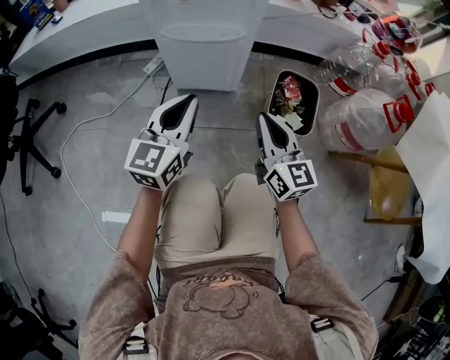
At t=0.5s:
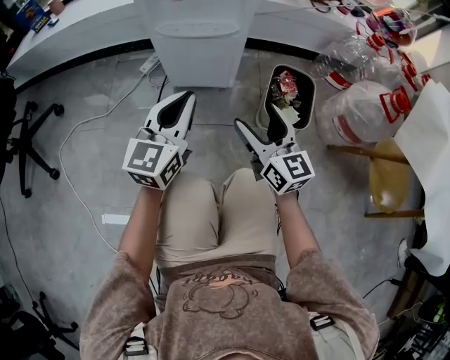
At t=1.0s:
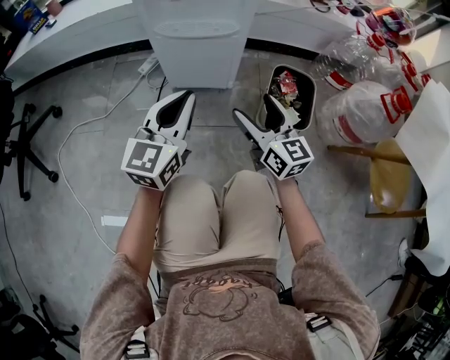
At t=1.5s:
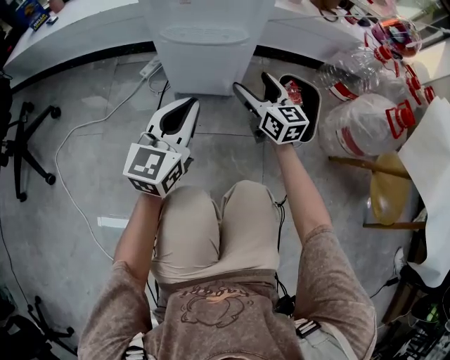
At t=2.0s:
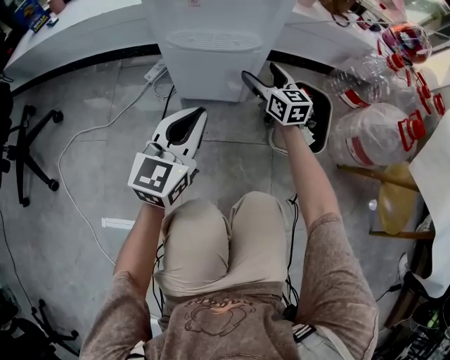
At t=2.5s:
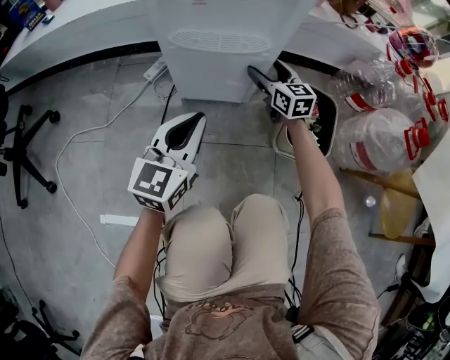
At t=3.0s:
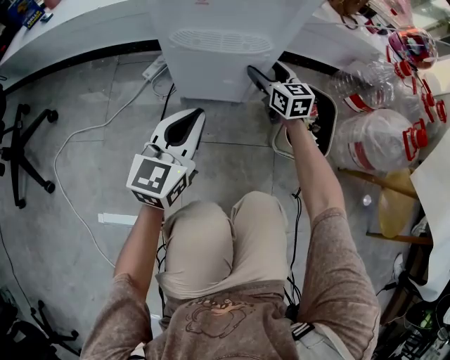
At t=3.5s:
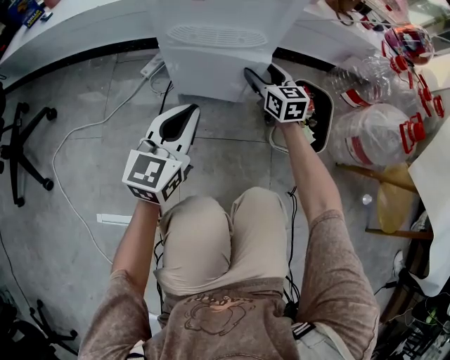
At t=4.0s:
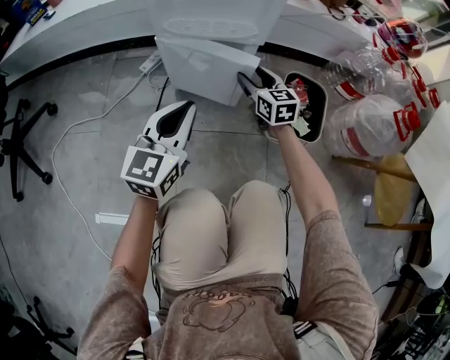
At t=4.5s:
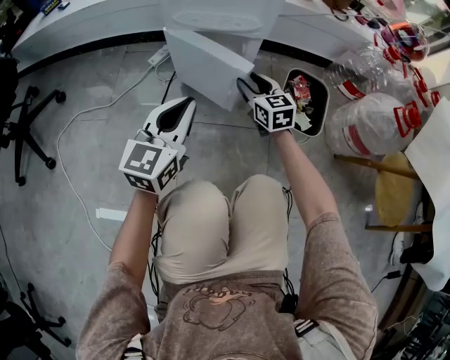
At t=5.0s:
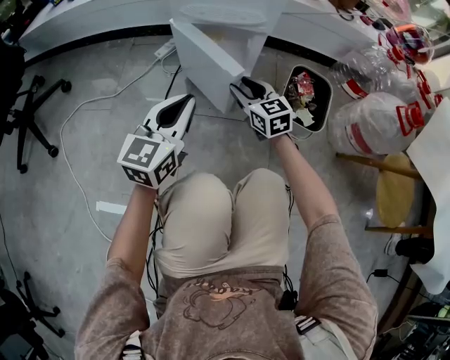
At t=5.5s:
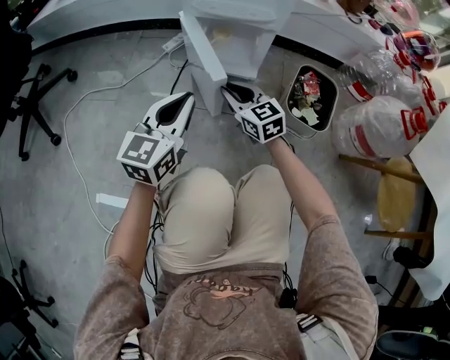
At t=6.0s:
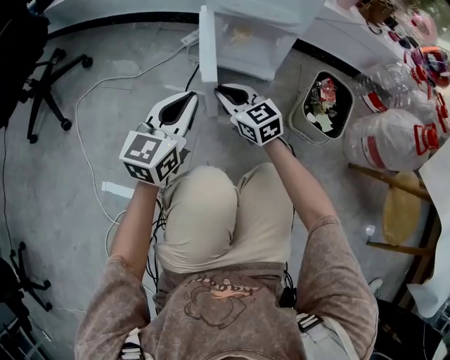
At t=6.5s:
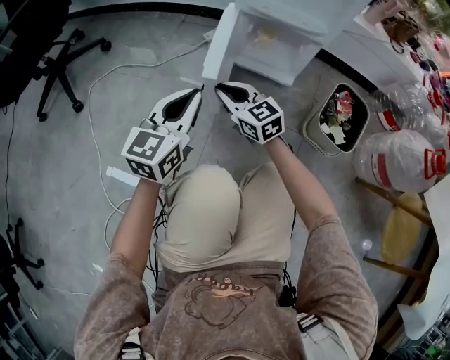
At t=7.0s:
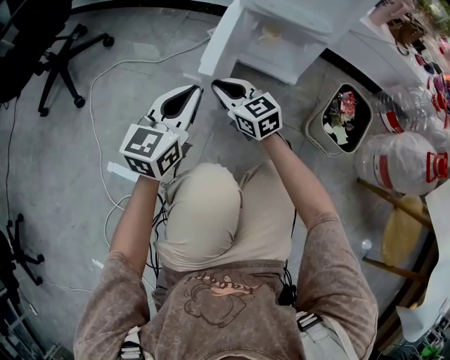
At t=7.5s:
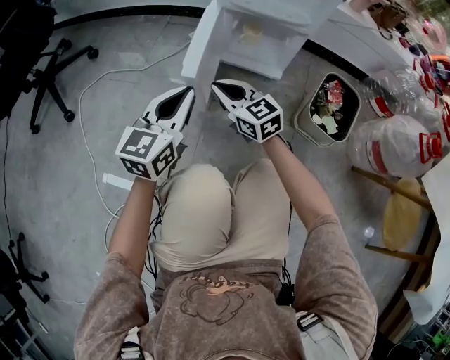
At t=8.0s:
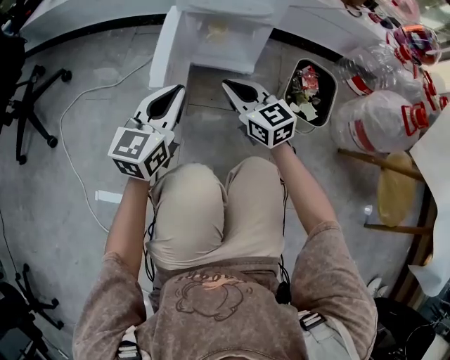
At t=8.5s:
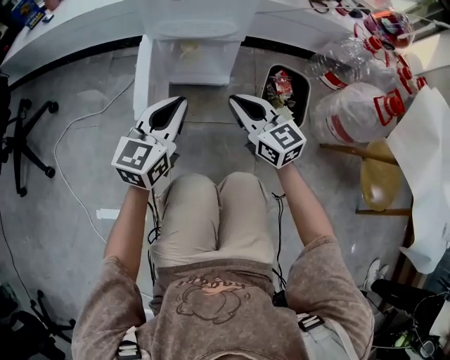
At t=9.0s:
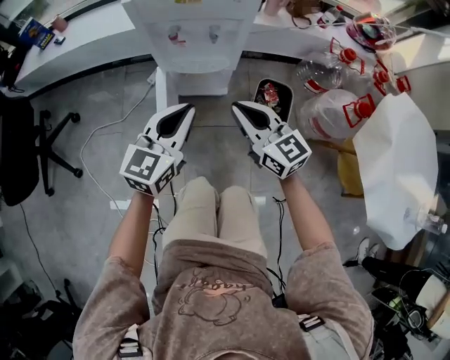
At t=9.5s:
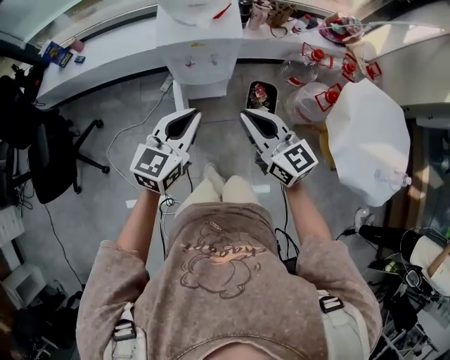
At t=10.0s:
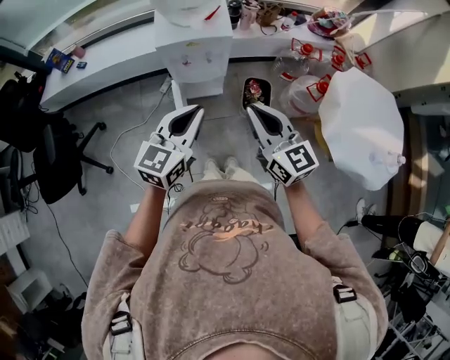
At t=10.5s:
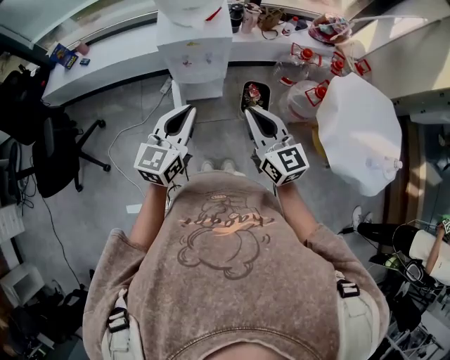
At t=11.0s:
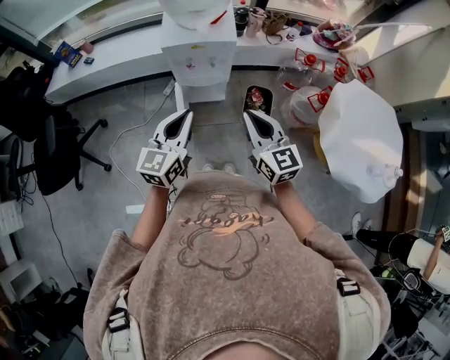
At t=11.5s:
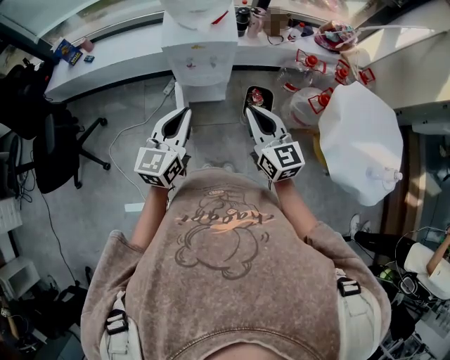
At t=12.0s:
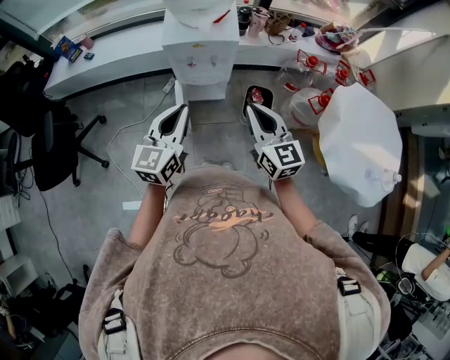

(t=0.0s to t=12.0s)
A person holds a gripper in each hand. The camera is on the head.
t=0.0s - t=2.0s: The right gripper is displaced forward and downward by approximately 25 cm, and opens.
t=2.0s - t=4.0s: The right gripper closes its fingers.
t=4.0s - t=6.0s: The right gripper goes about 25 cm to the left and backward, changes its angle by about 30 degrees, and closes, while the left gripper is displaced backward and to the left by some 10 cm.
t=6.0s - t=8.0s: The right gripper shifts roughly 5 cm to the right.
t=8.0s - t=10.0s: Both grippers travel together upward, about 60 cm. The right gripper swivels about 30 degrees. The left gripper swivels about 20 degrees.
t=10.0s - t=12.0s: The left gripper changes place by approximately 5 cm, while the right gripper shifts by roughly 5 cm.

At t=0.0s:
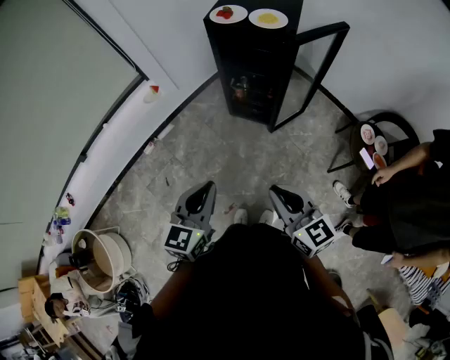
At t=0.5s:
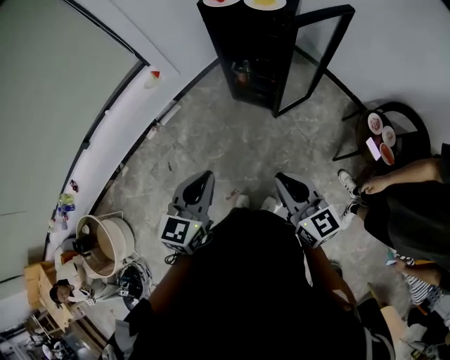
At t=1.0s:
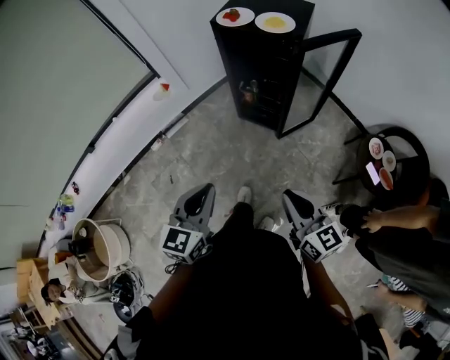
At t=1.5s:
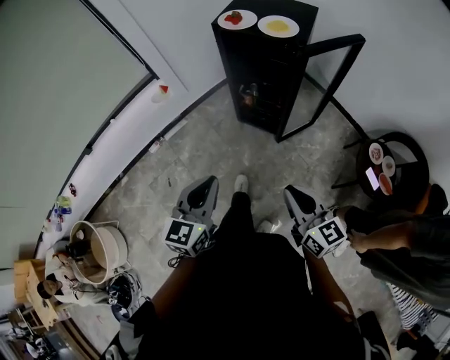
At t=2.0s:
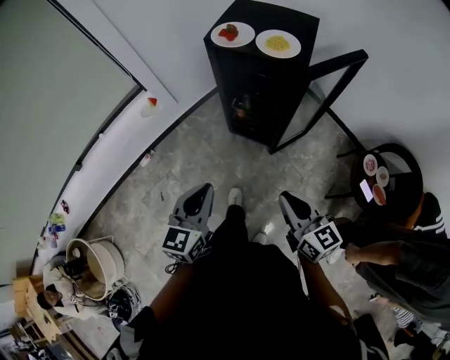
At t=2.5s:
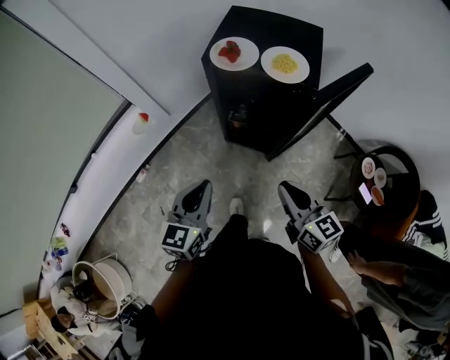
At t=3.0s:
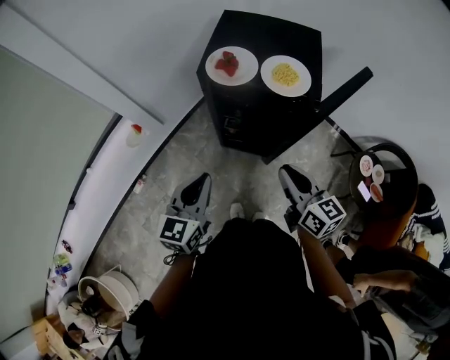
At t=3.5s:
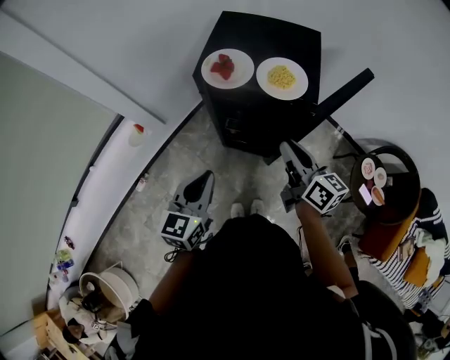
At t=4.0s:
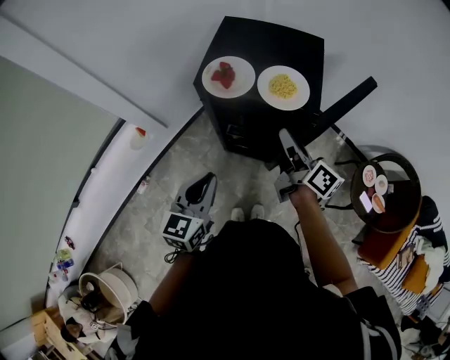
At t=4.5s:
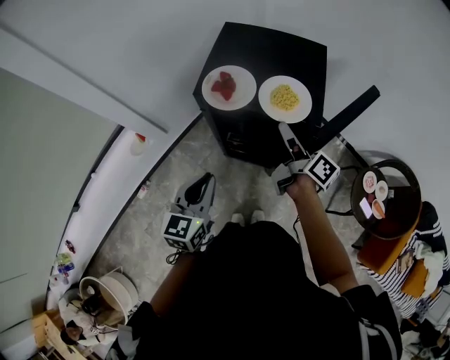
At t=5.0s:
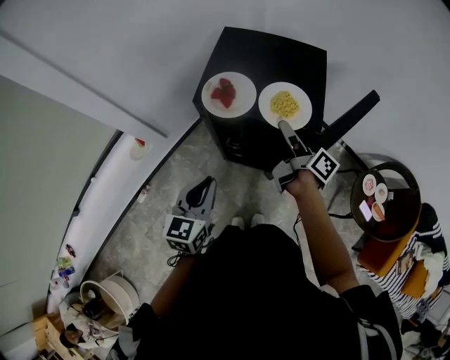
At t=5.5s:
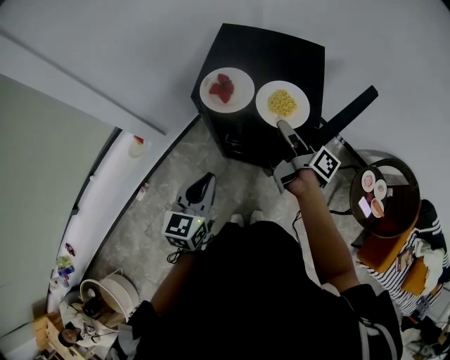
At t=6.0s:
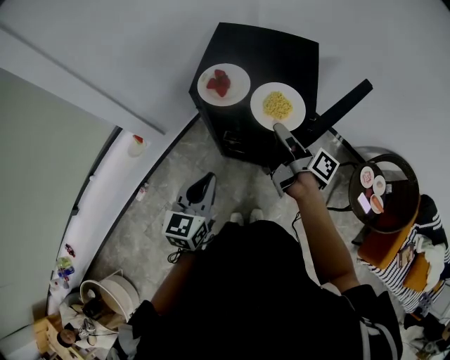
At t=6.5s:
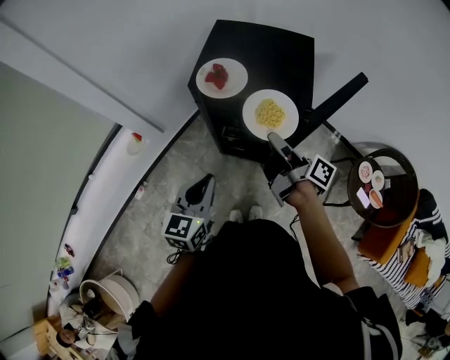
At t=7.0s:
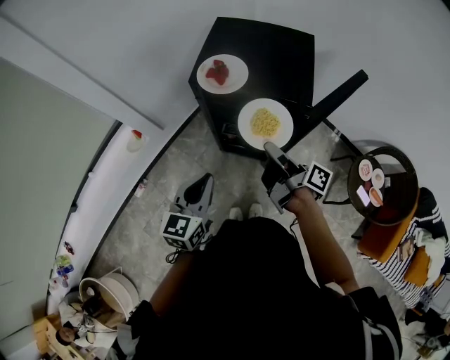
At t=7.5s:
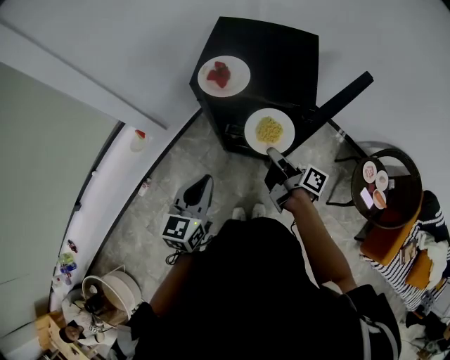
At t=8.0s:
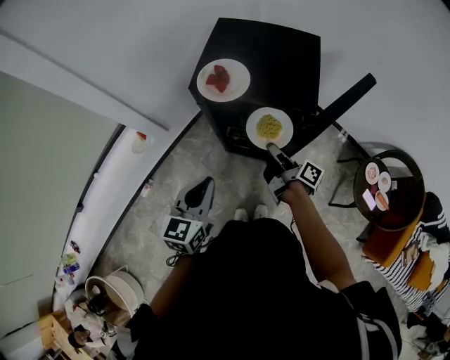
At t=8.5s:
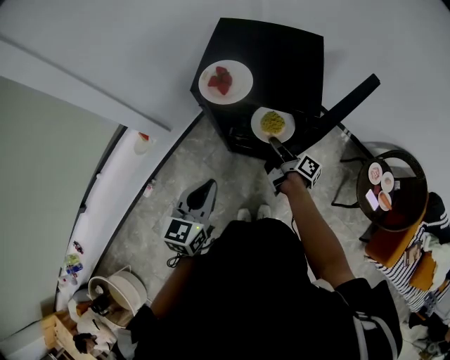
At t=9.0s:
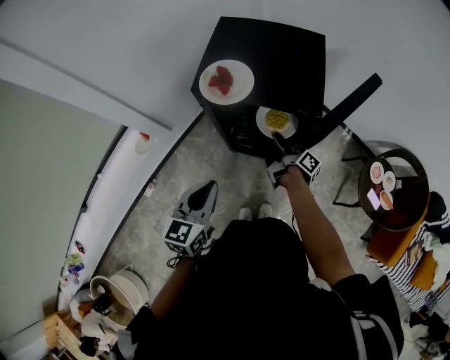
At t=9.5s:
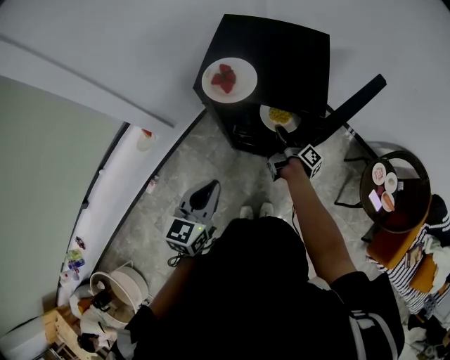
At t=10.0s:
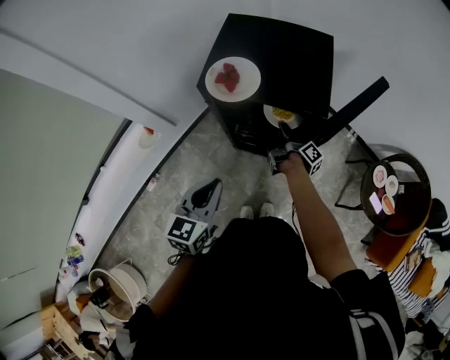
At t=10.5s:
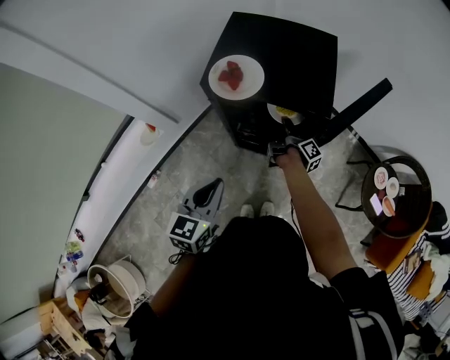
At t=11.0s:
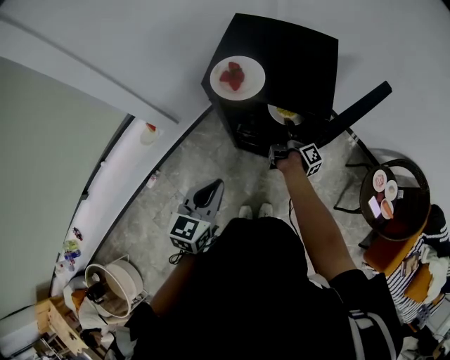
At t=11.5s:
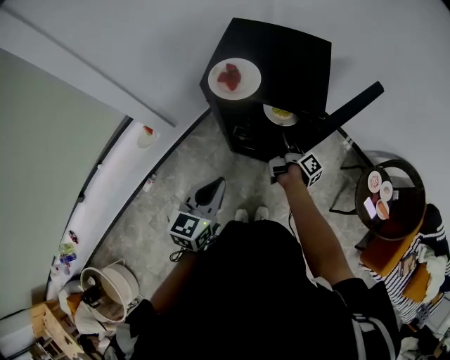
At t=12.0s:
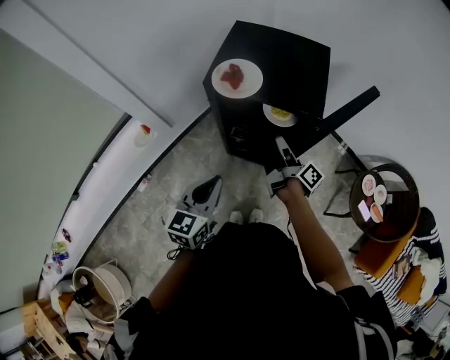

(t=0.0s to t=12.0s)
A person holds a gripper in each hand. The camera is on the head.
t=0.0s - t=2.0s: The left gripper changes place by some 15 cm.
t=2.0s - t=4.0s: The left gripper ends up some 25 cm from where it was.

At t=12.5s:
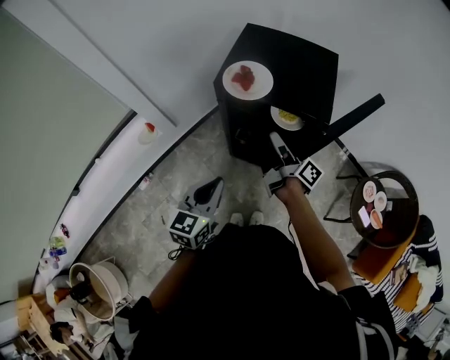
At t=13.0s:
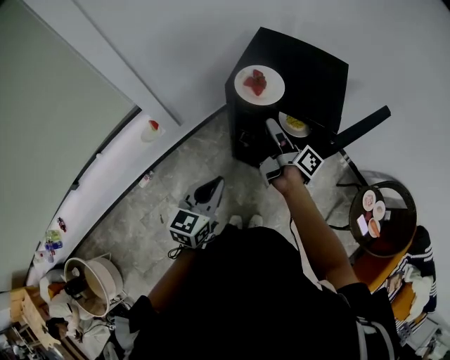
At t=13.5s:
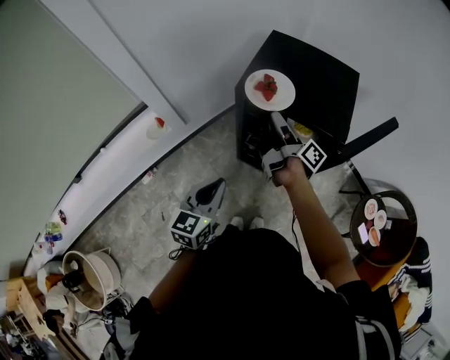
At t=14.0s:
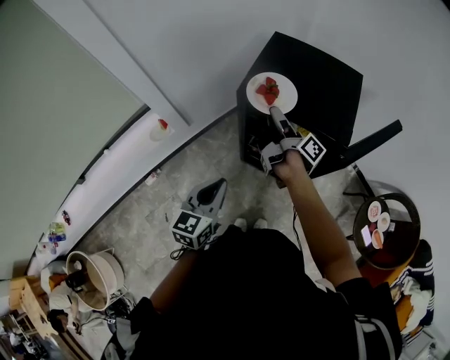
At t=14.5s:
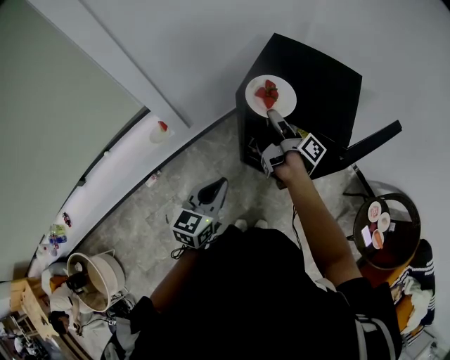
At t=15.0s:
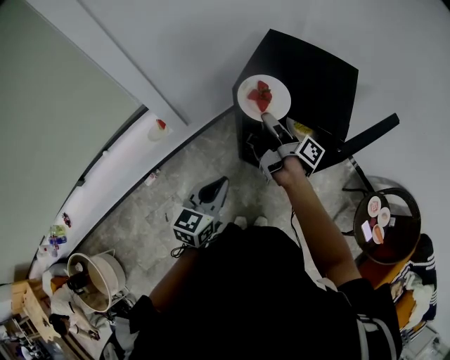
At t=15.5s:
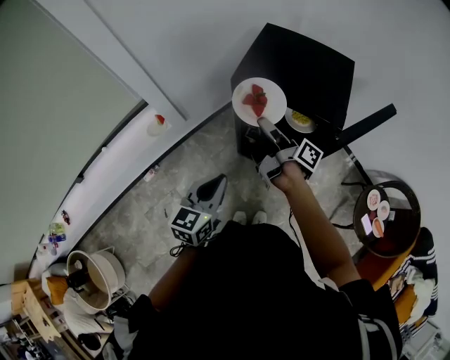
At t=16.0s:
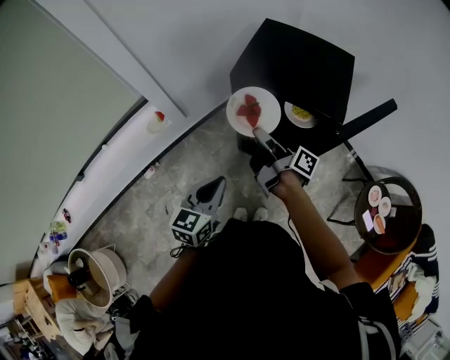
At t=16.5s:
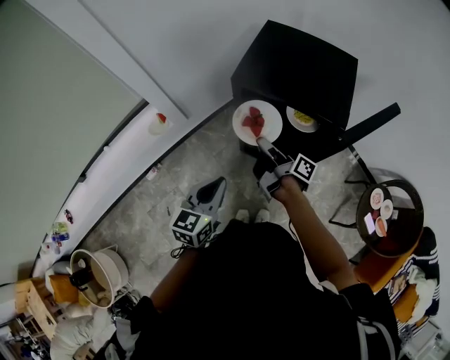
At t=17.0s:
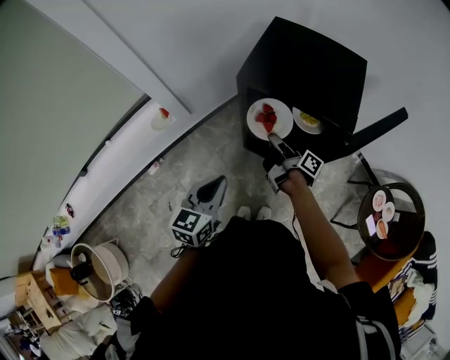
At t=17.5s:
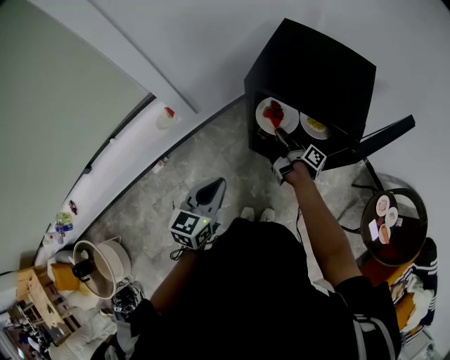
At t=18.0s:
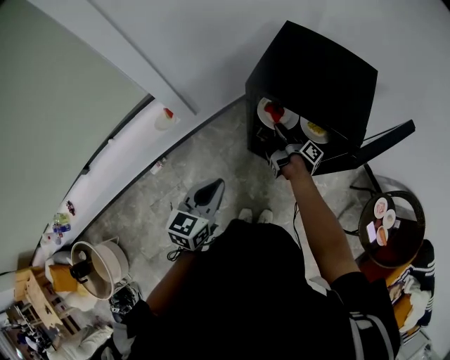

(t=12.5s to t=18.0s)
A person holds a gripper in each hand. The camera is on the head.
t=12.5s - t=14.5s: The left gripper changes place by about 5 cm.
t=14.5s - t=16.0s: The left gripper changes place by about 5 cm.
t=16.0s - t=18.0s: The left gripper changes place by some 5 cm.
